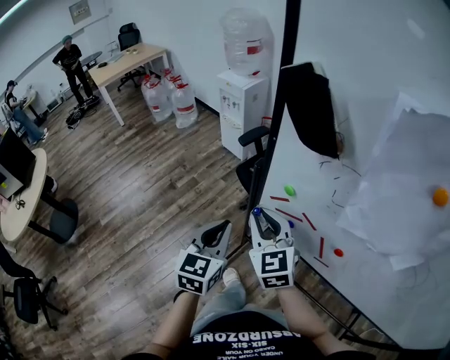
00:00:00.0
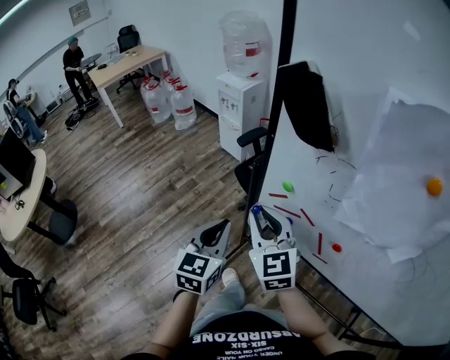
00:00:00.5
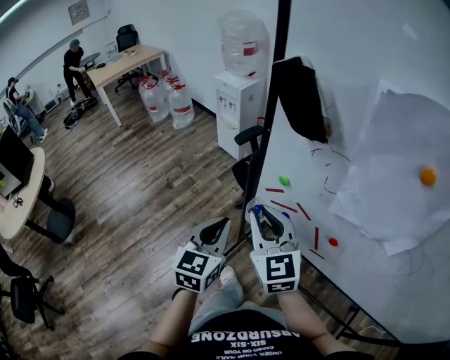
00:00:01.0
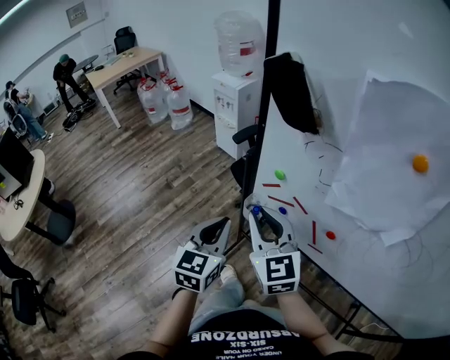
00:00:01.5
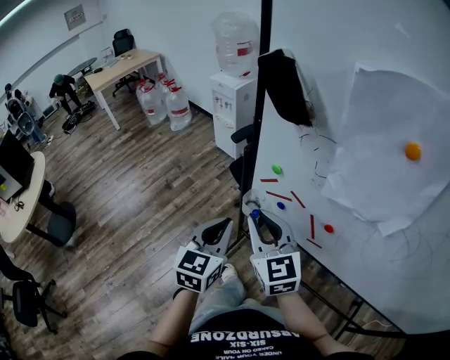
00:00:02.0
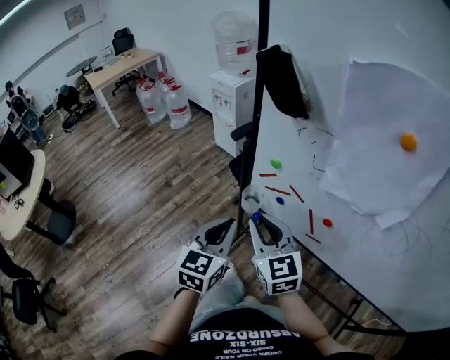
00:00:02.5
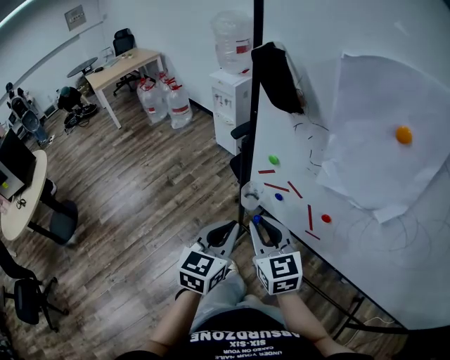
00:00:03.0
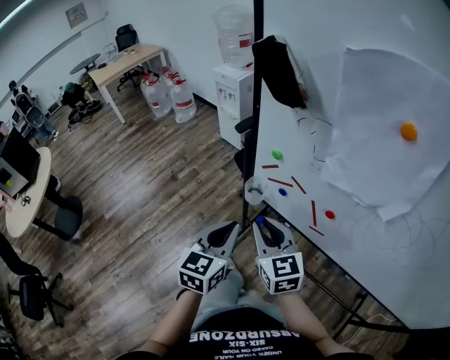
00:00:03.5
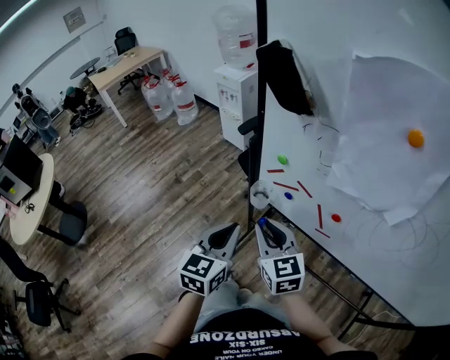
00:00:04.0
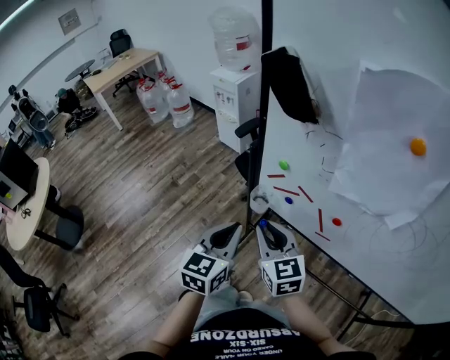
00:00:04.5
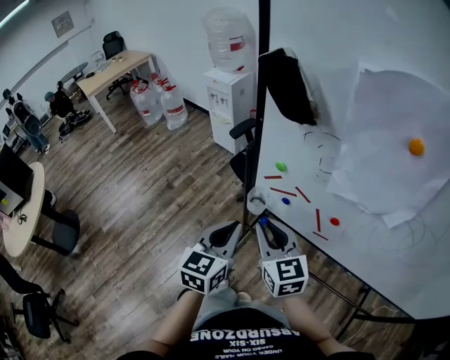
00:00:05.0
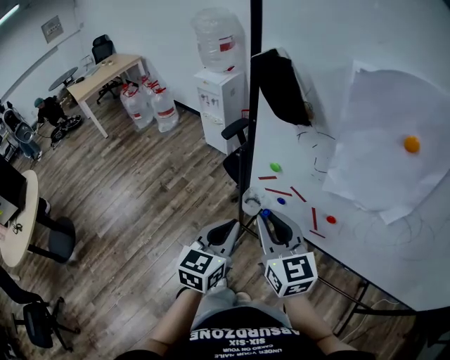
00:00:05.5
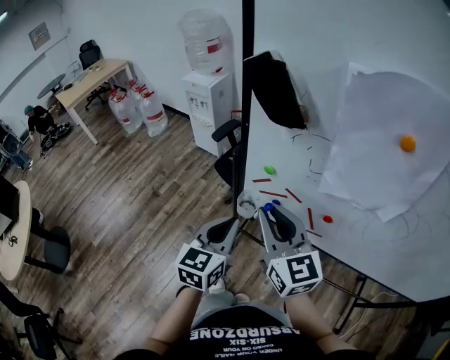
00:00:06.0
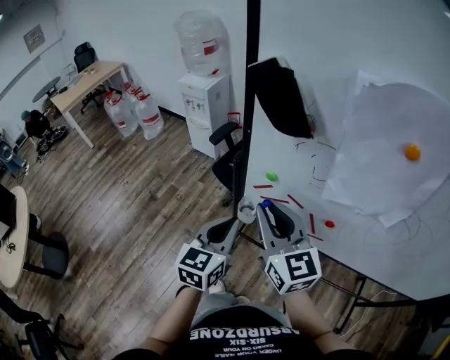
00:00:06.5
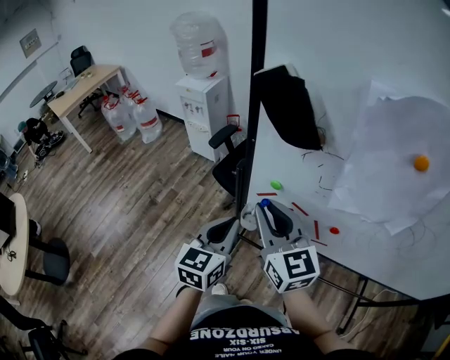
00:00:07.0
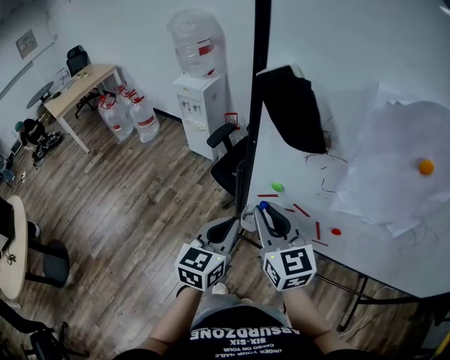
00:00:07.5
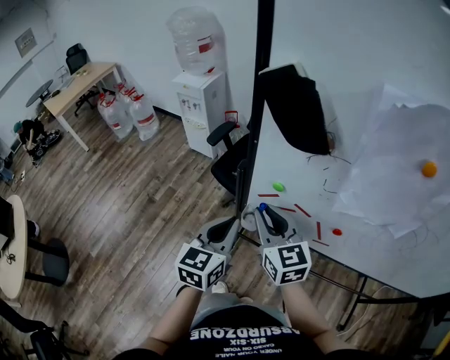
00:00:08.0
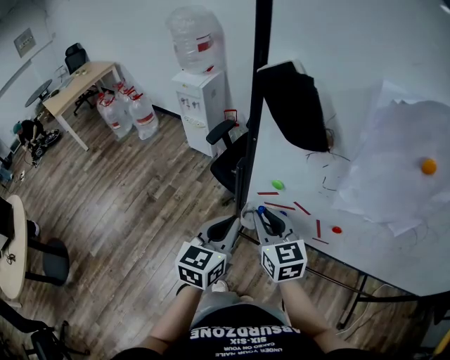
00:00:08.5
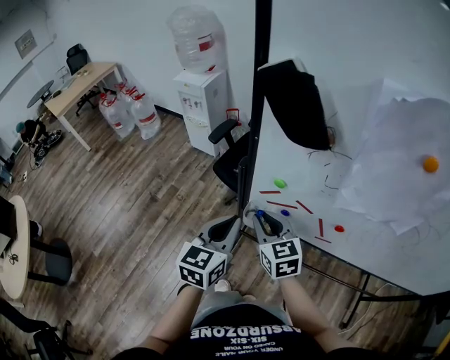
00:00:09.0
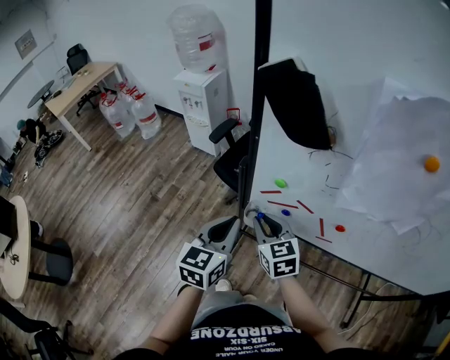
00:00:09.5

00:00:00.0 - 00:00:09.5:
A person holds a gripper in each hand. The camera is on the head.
00:00:00.0 - 00:00:02.0: The grippers both shift backward by roughly 5 cm.
00:00:02.0 - 00:00:04.0: The right gripper goes roughly 5 cm downward.
00:00:04.0 - 00:00:05.5: The right gripper shifts about 10 cm upward.
00:00:05.5 - 00:00:07.5: The grippers both shift forward by some 5 cm.
00:00:07.5 - 00:00:09.5: The right gripper moves downward, approximately 15 cm.

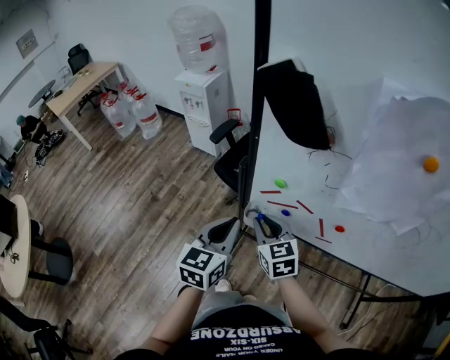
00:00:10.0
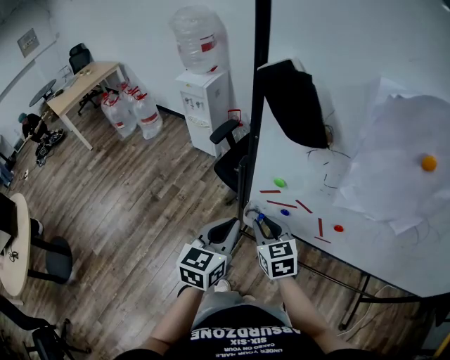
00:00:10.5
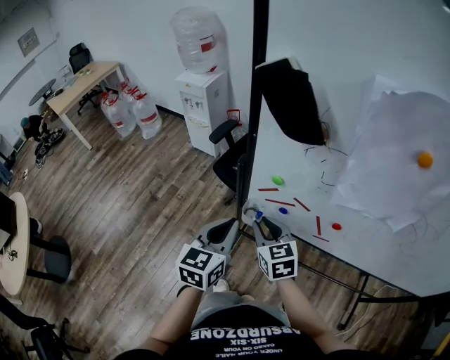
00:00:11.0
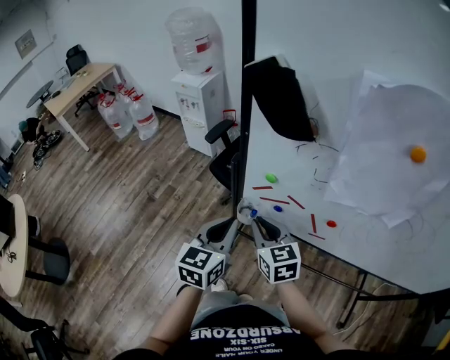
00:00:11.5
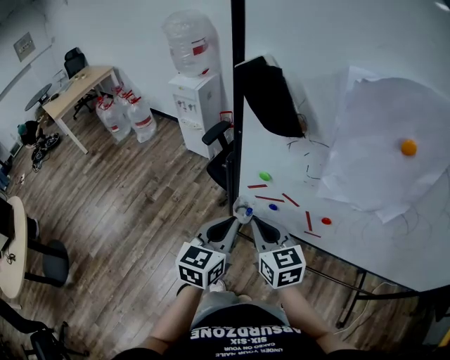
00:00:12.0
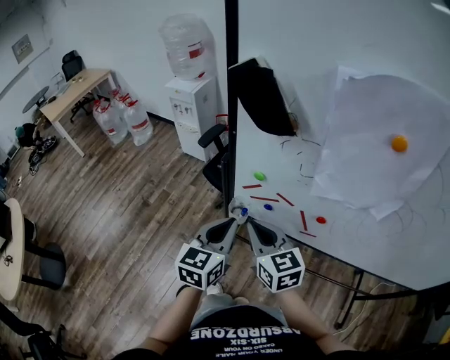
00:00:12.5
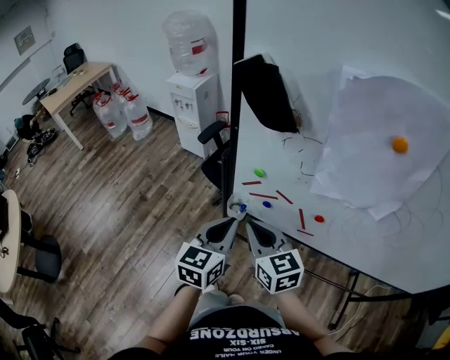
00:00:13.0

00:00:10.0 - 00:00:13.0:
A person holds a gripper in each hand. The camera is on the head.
00:00:10.0 - 00:00:11.5: The grippers make only small movements.
00:00:11.5 - 00:00:13.0: The right gripper ends up approximately 5 cm from where it was.

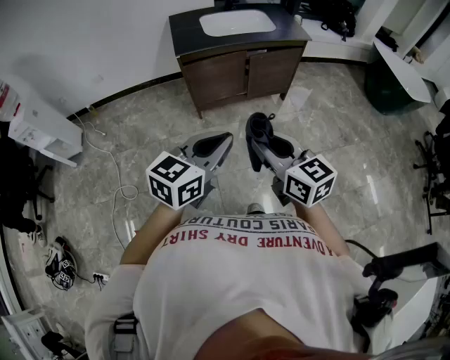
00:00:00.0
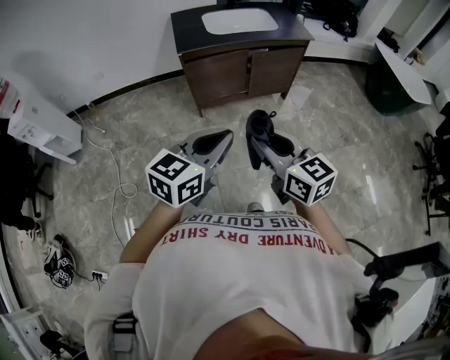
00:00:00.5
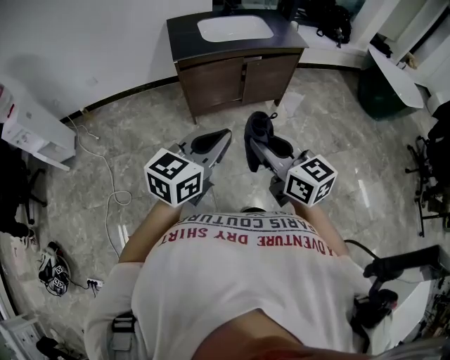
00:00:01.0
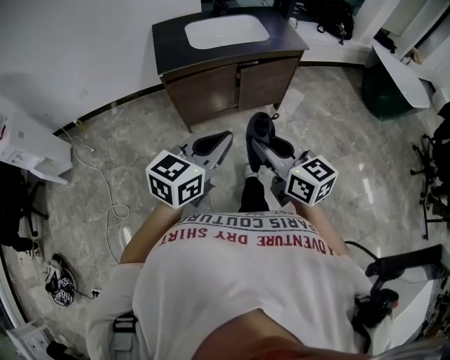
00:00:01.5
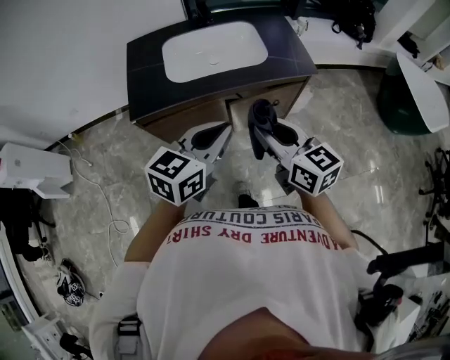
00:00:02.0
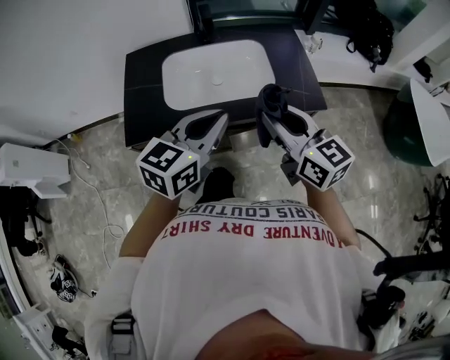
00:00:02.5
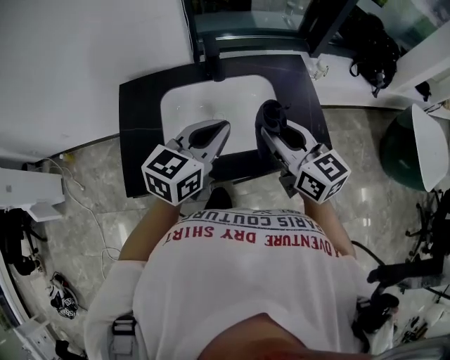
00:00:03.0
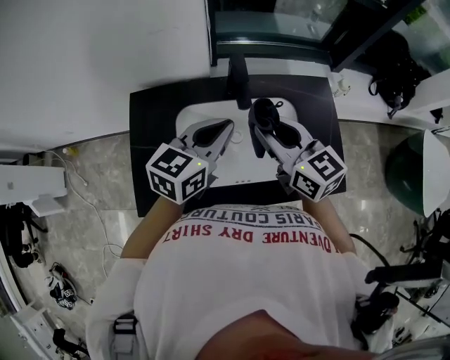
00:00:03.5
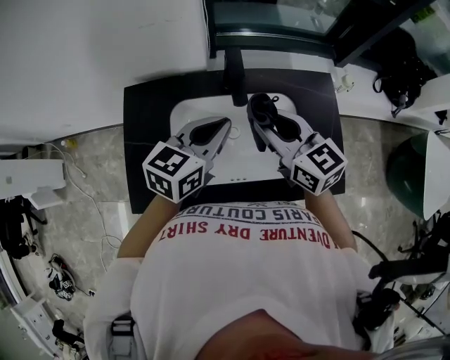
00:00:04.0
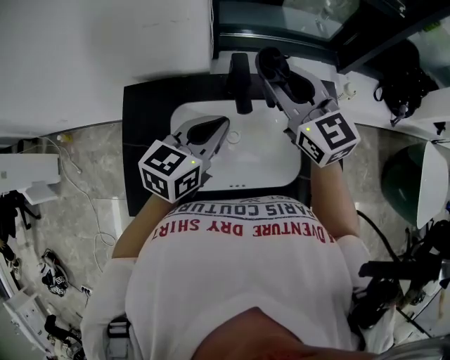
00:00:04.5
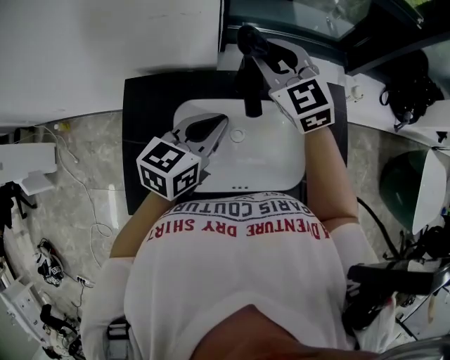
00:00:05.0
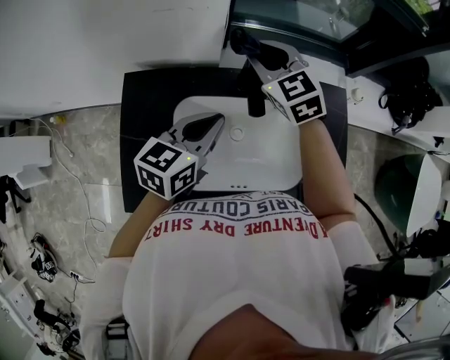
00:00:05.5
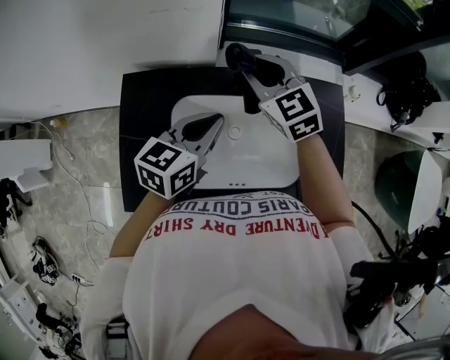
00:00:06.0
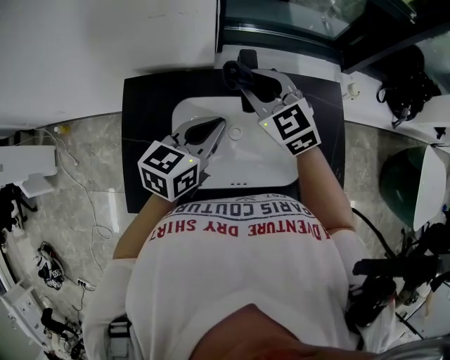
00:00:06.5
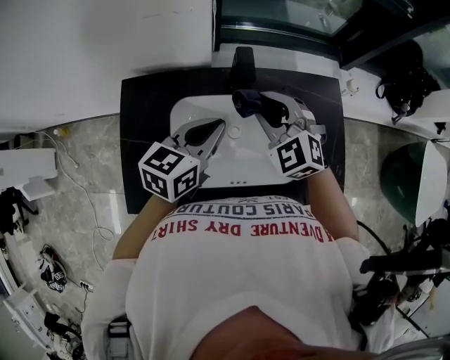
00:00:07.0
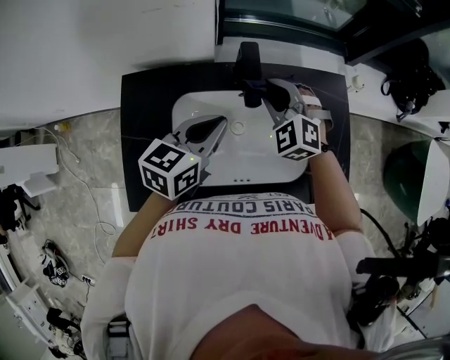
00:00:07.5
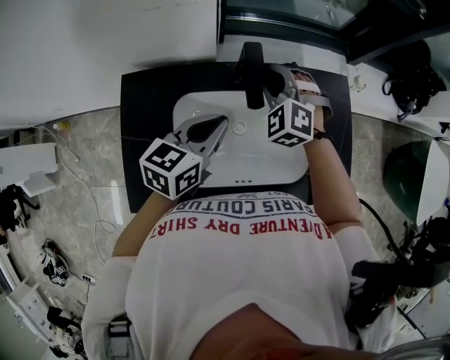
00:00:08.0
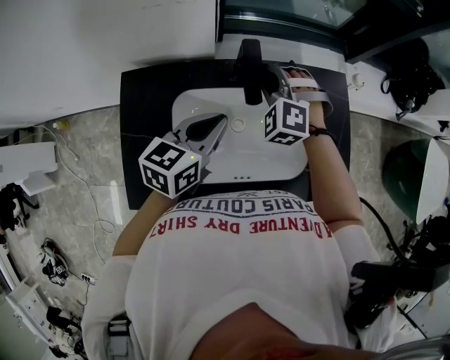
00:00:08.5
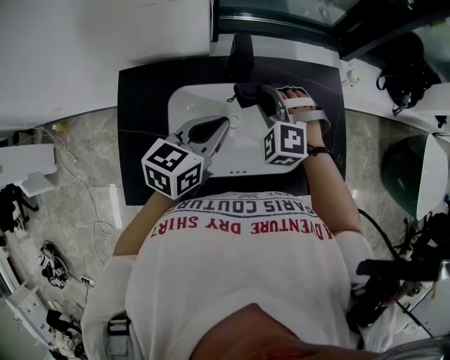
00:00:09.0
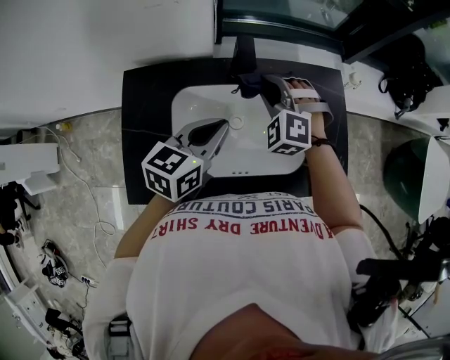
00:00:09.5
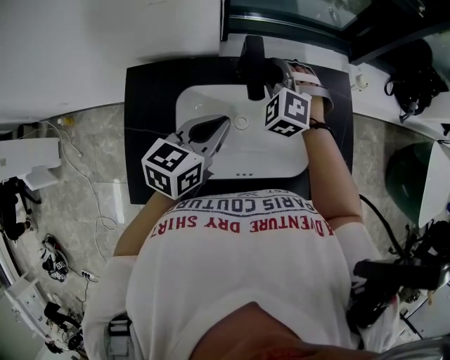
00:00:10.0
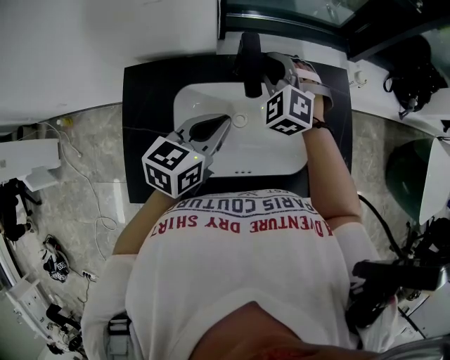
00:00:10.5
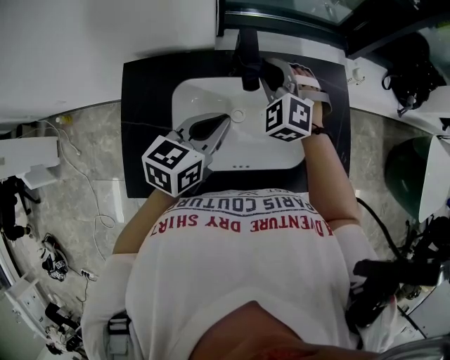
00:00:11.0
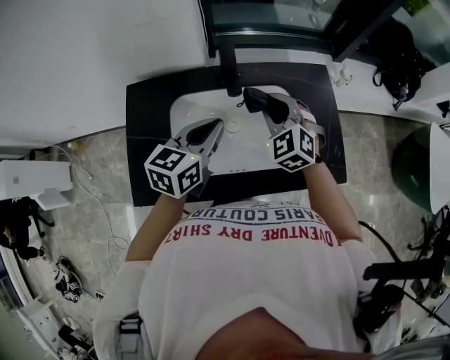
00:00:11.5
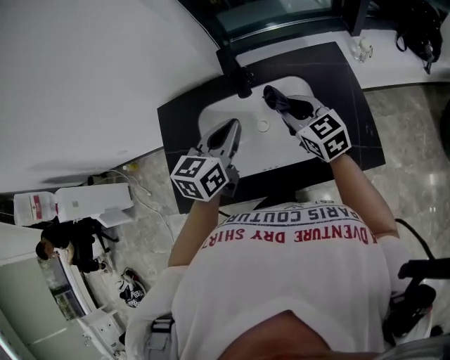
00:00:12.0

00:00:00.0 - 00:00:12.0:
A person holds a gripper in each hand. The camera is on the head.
00:00:00.0 - 00:00:02.0: The pair of grippers is taken forward, approximately 50 cm.
00:00:02.0 - 00:00:04.0: Both grippers are carried forward, some 50 cm.
00:00:04.0 - 00:00:06.0: The left gripper travels to the left by some 5 cm. Meanwhile the right gripper is displaced forward and to the left by about 15 cm, and changes its angle by about 30 degrees.
00:00:06.0 - 00:00:08.0: The right gripper travels downward by roughly 10 cm, reaches about 10 cm backward, then returns, and swivels approximately 40 degrees.
00:00:08.0 - 00:00:10.0: The right gripper goes backward and returns, roughly 10 cm each way.
00:00:10.0 - 00:00:12.0: The left gripper heads to the right and upward, covering roughly 10 cm. Meanwhile the right gripper goes some 20 cm backward and to the right, and rotates around the line of its fingers by about 60 degrees, clockwise from behind.

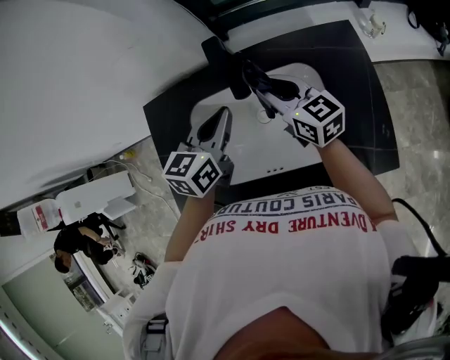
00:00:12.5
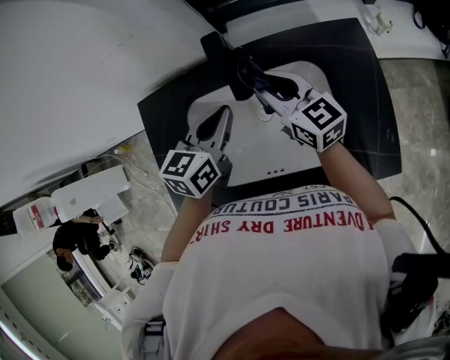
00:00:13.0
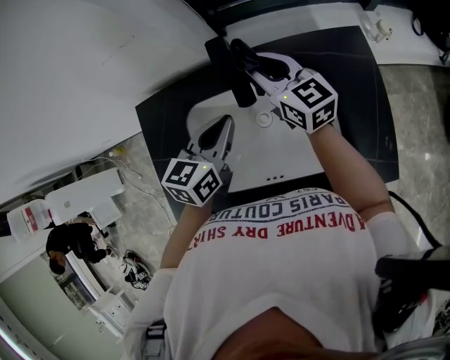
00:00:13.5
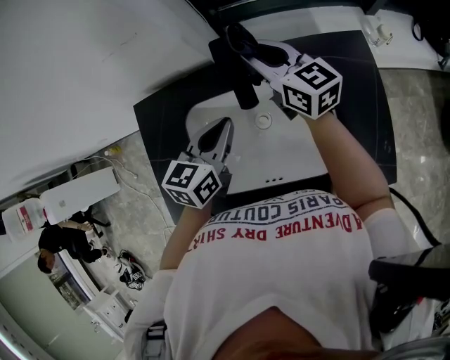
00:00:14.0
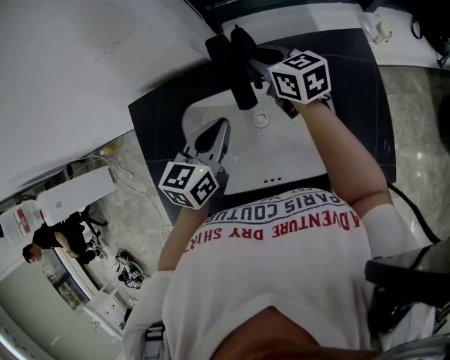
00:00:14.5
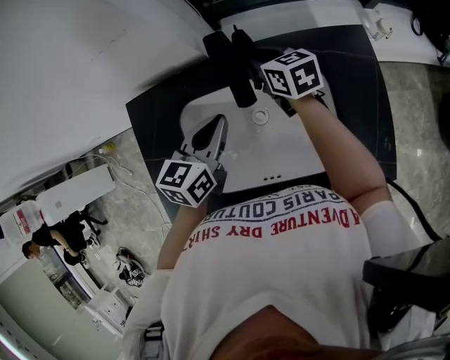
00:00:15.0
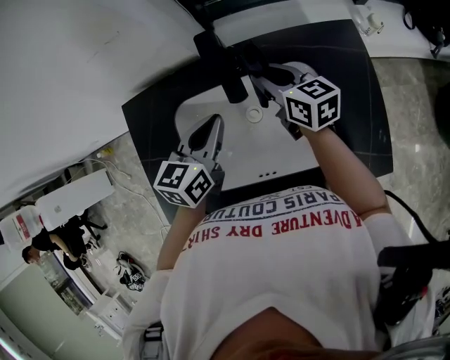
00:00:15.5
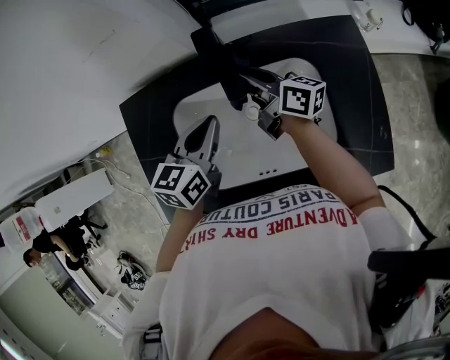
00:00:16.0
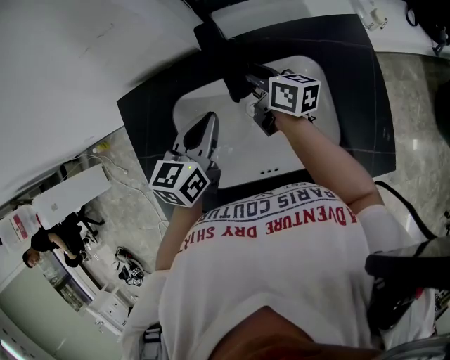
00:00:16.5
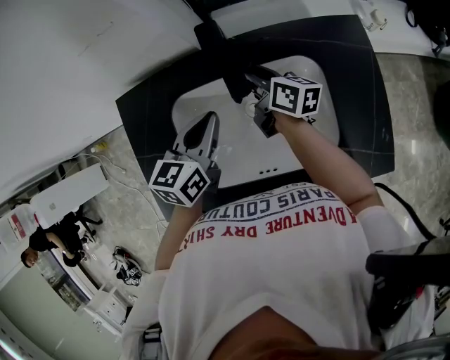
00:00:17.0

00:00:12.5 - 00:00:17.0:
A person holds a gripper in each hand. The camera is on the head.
00:00:12.5 - 00:00:14.5: The left gripper travels downward by some 5 cm, while the right gripper heads forward, covering some 10 cm.
00:00:14.5 - 00:00:17.0: The right gripper changes place by some 5 cm, and rotates some 30 degrees.
